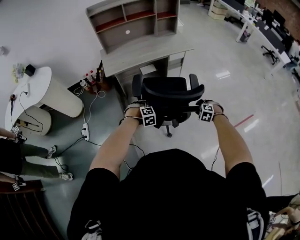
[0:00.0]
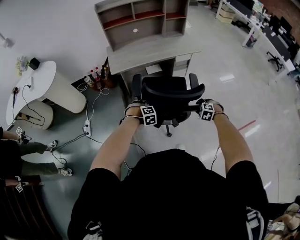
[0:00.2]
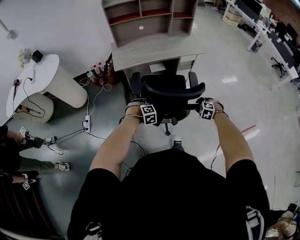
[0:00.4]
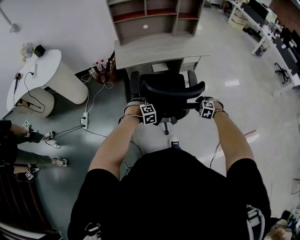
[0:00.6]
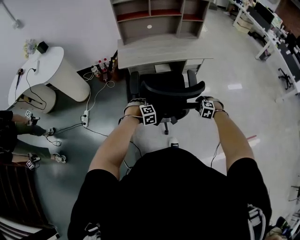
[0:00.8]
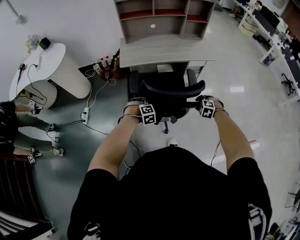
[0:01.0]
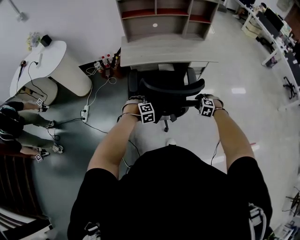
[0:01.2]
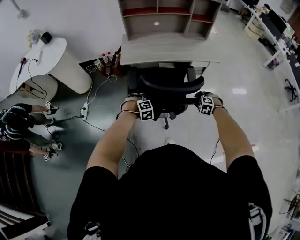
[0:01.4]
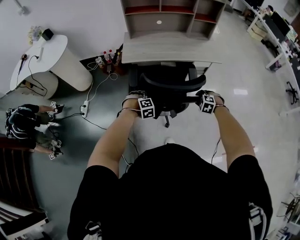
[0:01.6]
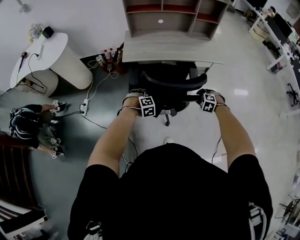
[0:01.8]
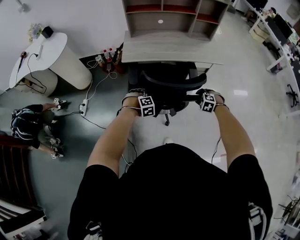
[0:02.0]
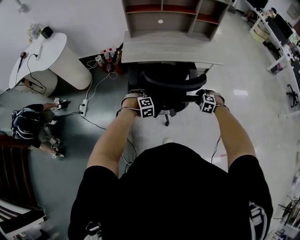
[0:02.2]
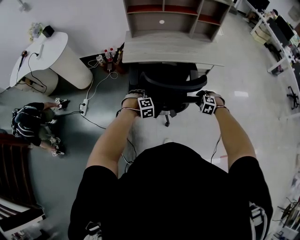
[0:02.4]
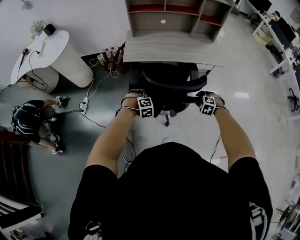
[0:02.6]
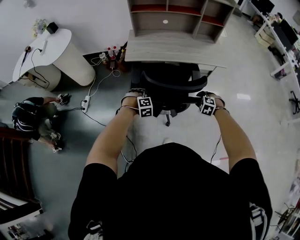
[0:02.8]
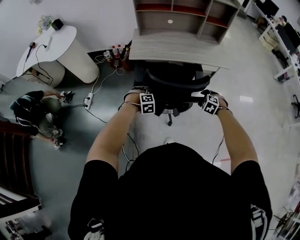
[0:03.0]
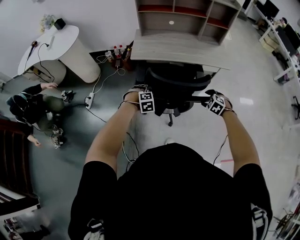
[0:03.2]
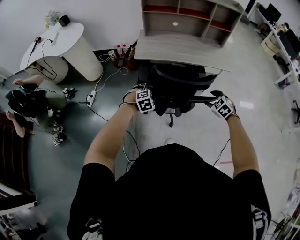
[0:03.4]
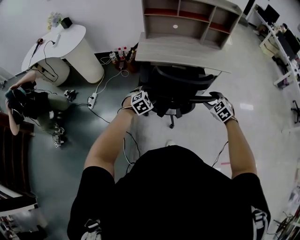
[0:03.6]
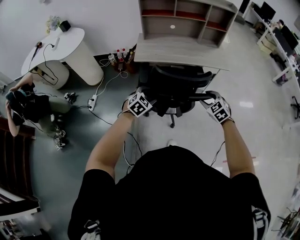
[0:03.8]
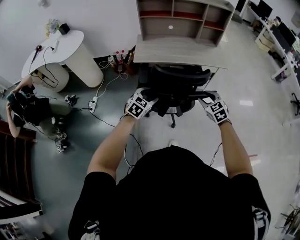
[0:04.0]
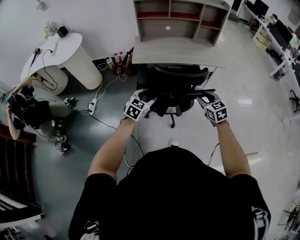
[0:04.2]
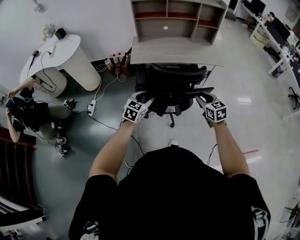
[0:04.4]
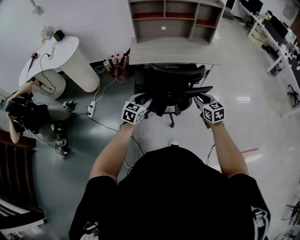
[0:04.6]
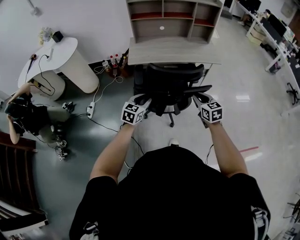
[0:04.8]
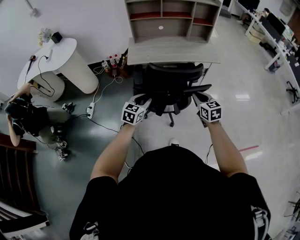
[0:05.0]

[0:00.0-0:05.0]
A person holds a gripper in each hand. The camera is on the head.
0:00.0 to 0:01.6: The right gripper travels forward by some 20 cm, while the left gripper travels forward by approximately 10 cm.
0:01.6 to 0:03.4: The right gripper is displaced upward by about 10 cm, rotates roughly 20 degrees, and opens. Meanwhile the left gripper shifts some 5 cm upward, turns by roughly 20 degrees, and opens up.
0:03.4 to 0:05.0: The right gripper is displaced backward, upward and to the left by approximately 15 cm, rotates roughly 50 degrees, and closes. The left gripper travels upward and backward by approximately 15 cm, angles its fingers upward, by roughly 30 degrees, and closes up.

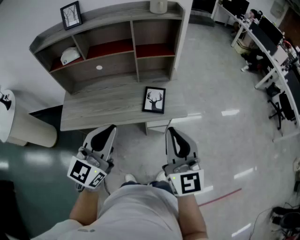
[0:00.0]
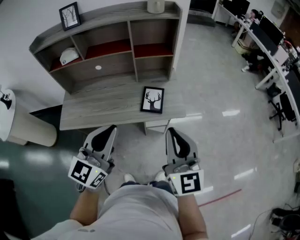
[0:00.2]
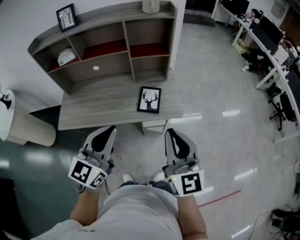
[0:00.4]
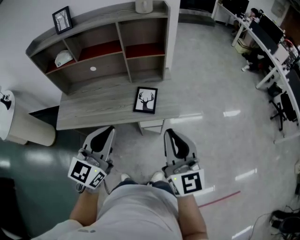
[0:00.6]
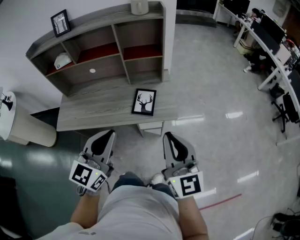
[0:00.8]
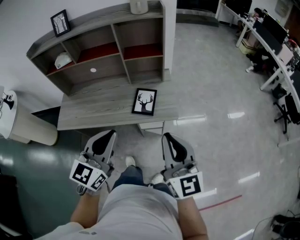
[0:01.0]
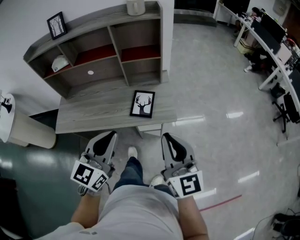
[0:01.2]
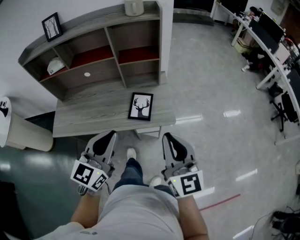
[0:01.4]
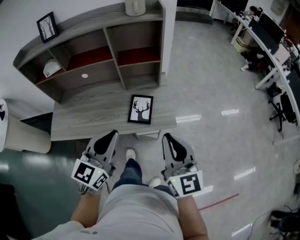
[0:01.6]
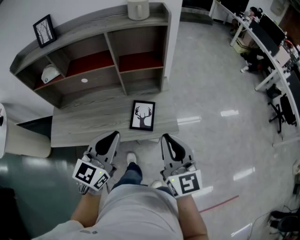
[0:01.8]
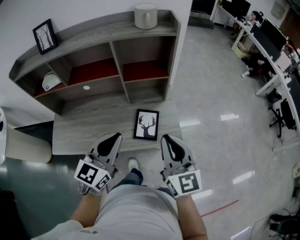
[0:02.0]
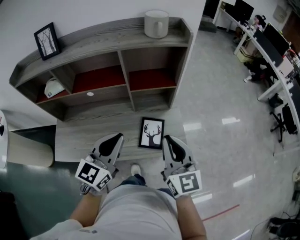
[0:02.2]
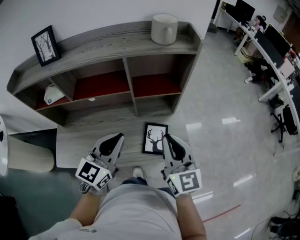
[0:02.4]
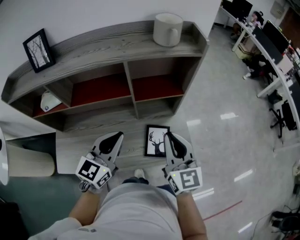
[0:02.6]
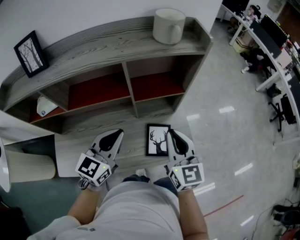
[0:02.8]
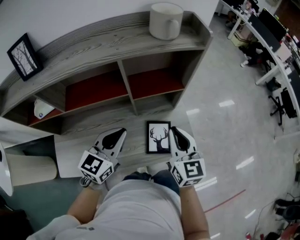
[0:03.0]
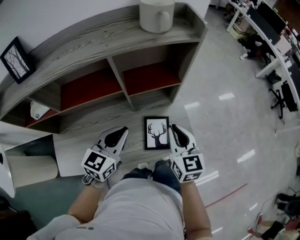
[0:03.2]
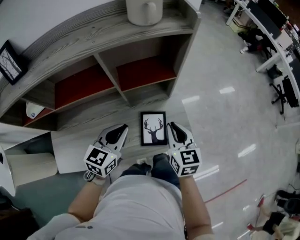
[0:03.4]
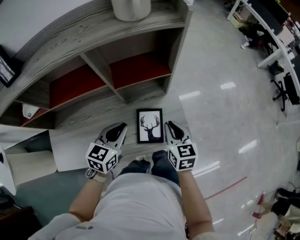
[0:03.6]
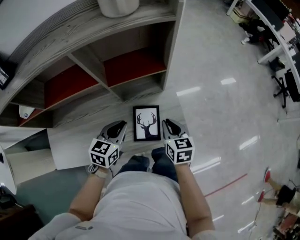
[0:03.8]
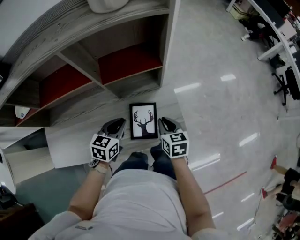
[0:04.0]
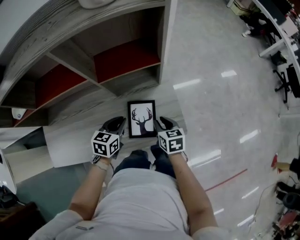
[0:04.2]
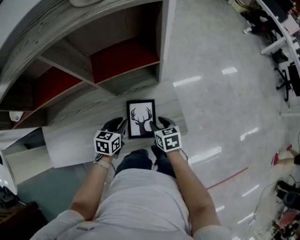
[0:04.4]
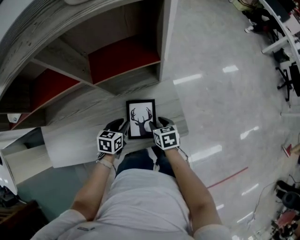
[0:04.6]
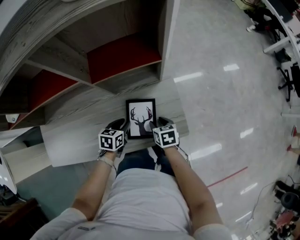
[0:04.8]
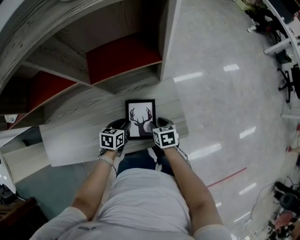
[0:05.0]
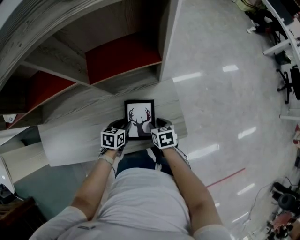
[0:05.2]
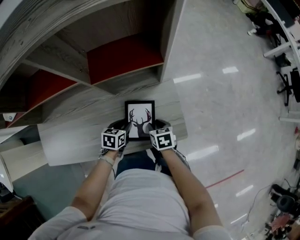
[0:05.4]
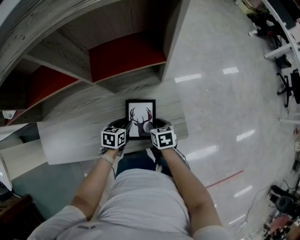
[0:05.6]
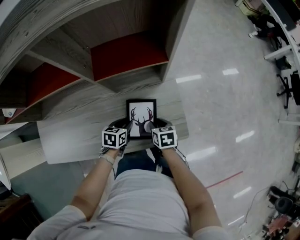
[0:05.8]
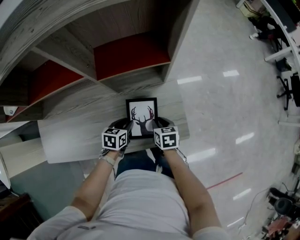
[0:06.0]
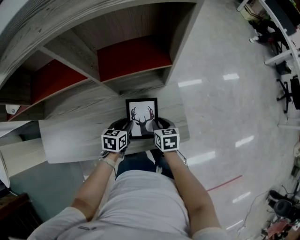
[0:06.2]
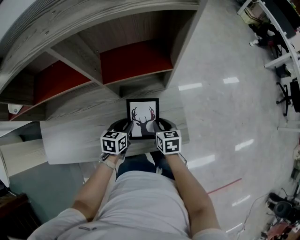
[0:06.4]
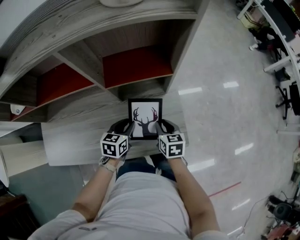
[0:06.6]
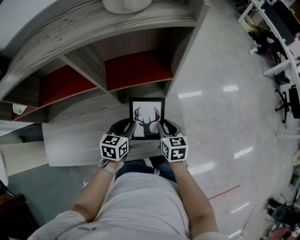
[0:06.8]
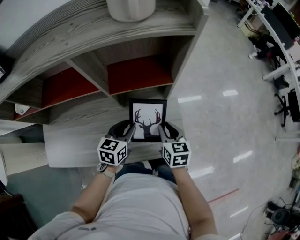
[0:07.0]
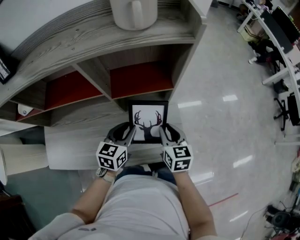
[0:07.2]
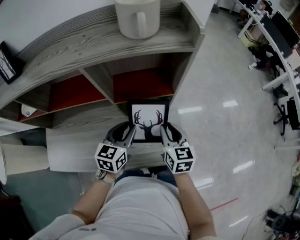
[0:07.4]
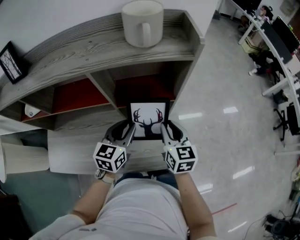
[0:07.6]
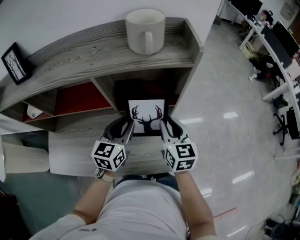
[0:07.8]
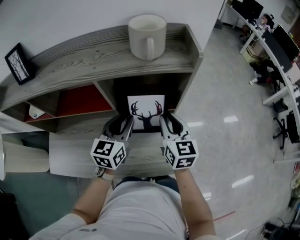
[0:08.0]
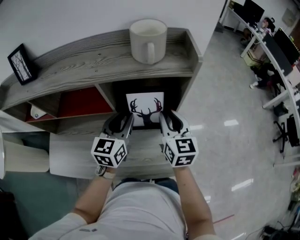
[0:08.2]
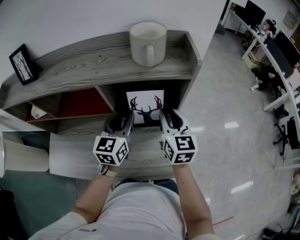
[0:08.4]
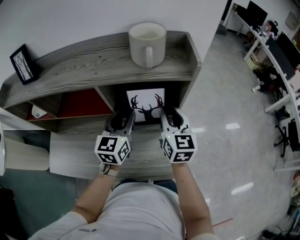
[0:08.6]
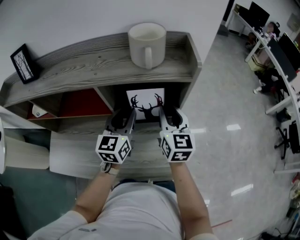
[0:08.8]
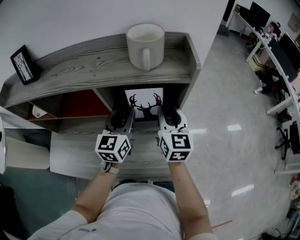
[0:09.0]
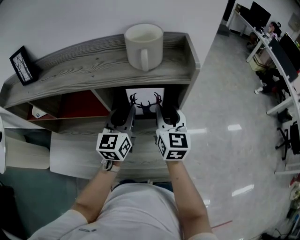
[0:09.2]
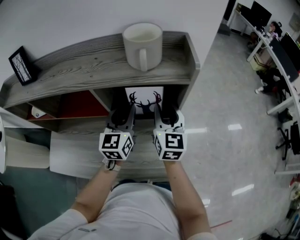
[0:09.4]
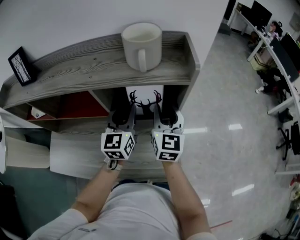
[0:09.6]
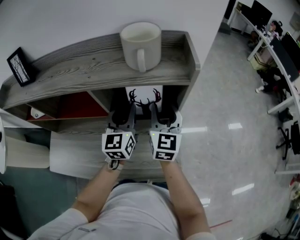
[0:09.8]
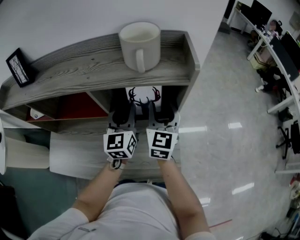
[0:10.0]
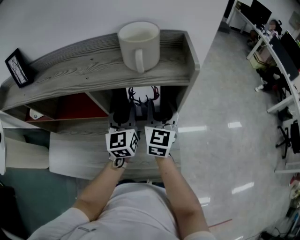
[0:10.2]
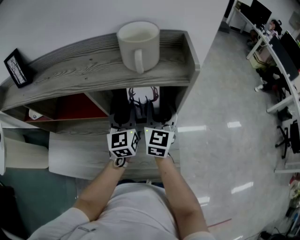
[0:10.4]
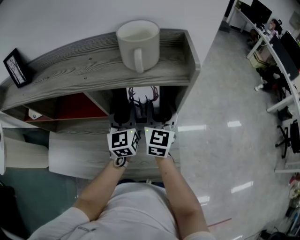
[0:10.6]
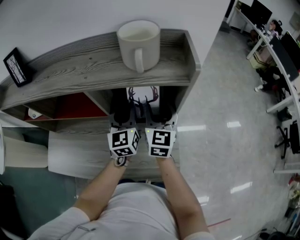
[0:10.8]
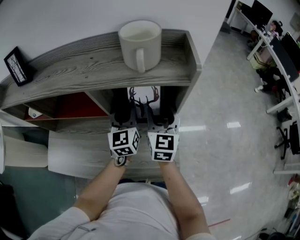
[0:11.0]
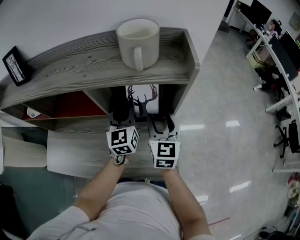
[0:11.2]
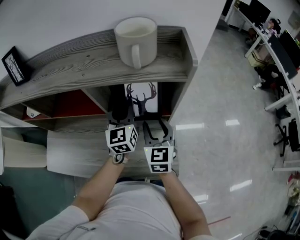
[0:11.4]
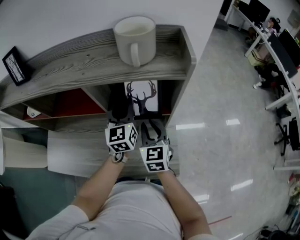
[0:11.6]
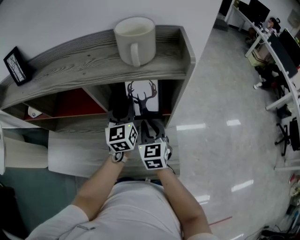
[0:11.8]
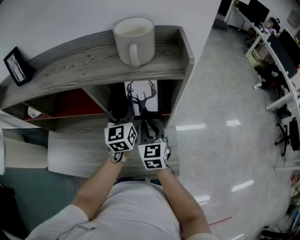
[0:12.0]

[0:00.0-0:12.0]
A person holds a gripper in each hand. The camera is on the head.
0:00.0 to 0:01.6: The right gripper goes about 15 cm forward and to the right. The left gripper travels forward, to the right and downward by some 15 cm.
0:01.6 to 0:03.0: The two grippers go roughly 30 cm forward and to the left.
0:03.0 to 0:04.4: Both grippers move downward, some 30 cm. The right gripper tips its fingers downward by about 30 degrees, and opens up, while the left gripper tilts its fingers some 30 degrees downward.
0:04.4 to 0:06.0: The right gripper shifts about 5 cm downward, while the left gripper heads downward, covering about 10 cm.
0:06.0 to 0:07.6: The two grippers go approximately 30 cm upward. The left gripper swivels some 30 degrees. The right gripper tips its fingers upward by roughly 30 degrees.
0:07.6 to 0:09.0: Both grippers move upward and forward, roughly 15 cm. The left gripper turns by approximately 20 degrees.
0:09.0 to 0:10.4: The right gripper opens.
0:10.4 to 0:12.0: The right gripper is displaced backward and downward by some 10 cm, and closes its fingers.

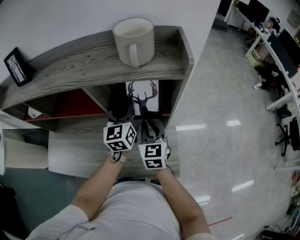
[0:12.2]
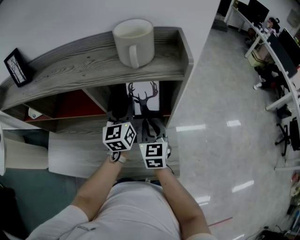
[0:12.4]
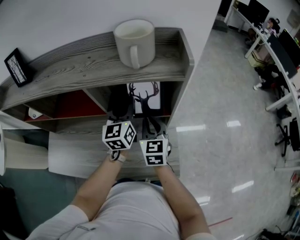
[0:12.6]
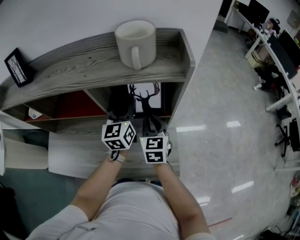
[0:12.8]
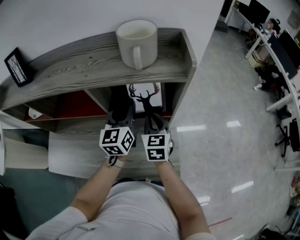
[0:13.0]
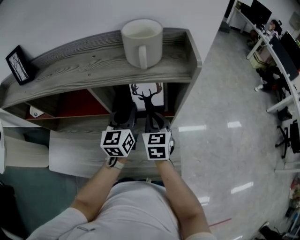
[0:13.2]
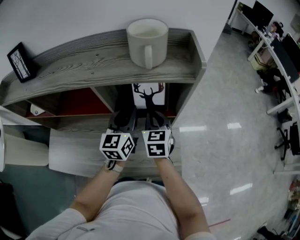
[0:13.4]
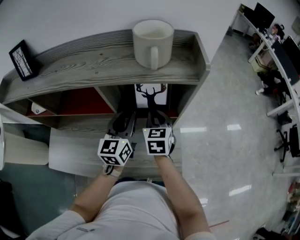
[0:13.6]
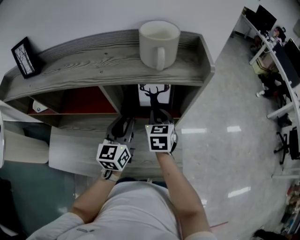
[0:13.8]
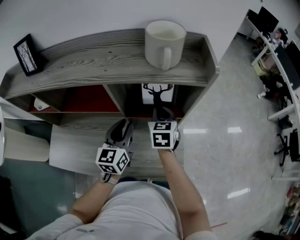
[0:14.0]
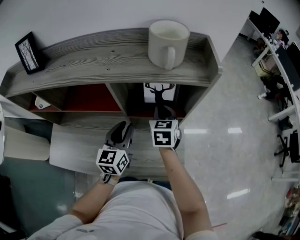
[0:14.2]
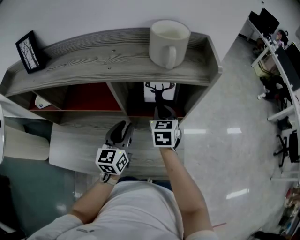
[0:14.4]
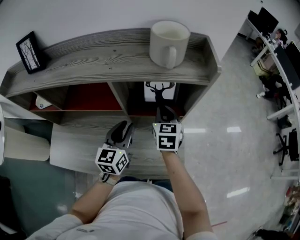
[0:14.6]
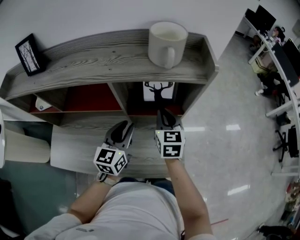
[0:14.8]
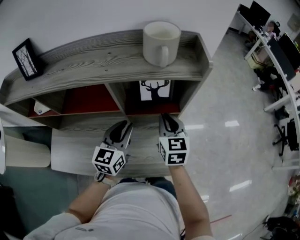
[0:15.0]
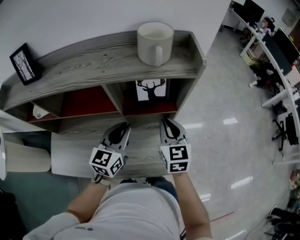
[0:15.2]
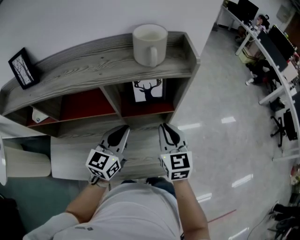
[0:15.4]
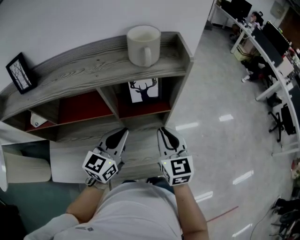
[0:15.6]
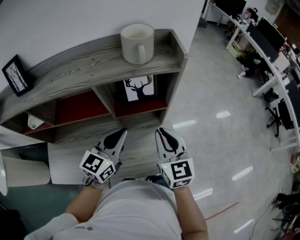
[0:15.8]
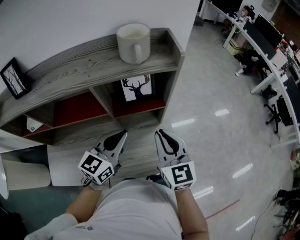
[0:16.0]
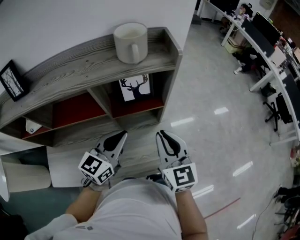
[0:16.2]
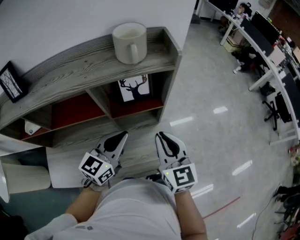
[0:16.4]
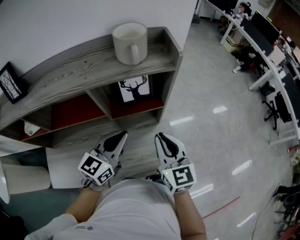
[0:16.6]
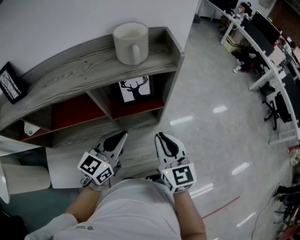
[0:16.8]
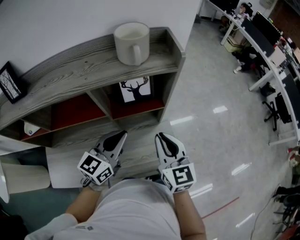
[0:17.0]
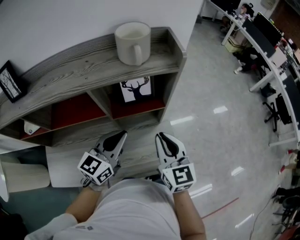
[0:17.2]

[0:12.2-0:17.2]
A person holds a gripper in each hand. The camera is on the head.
0:12.2 to 0:13.8: The right gripper moves forward, approximately 5 cm; the left gripper moves backward, about 5 cm.
0:13.8 to 0:15.6: The right gripper heads backward and upward, covering about 15 cm, while the left gripper moves backward and upward, roughly 10 cm, turns by roughly 30 degrees, and closes its fingers.
0:15.6 to 0:17.2: The grippers make only small movements.

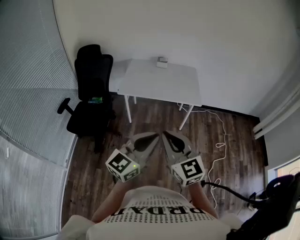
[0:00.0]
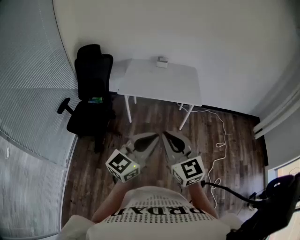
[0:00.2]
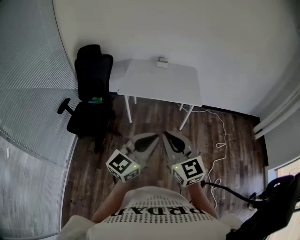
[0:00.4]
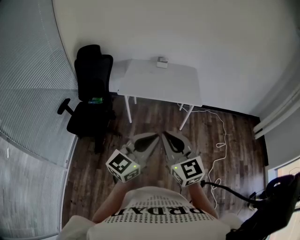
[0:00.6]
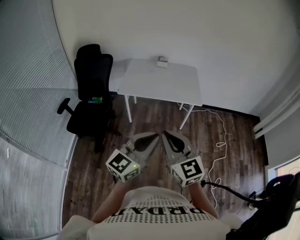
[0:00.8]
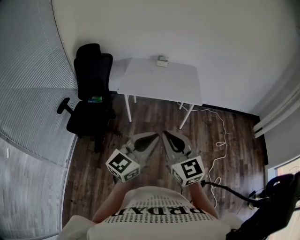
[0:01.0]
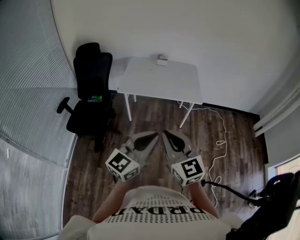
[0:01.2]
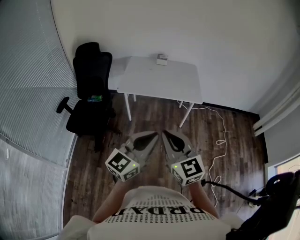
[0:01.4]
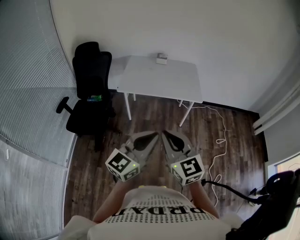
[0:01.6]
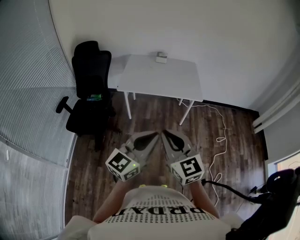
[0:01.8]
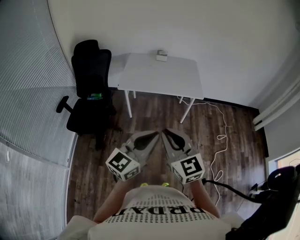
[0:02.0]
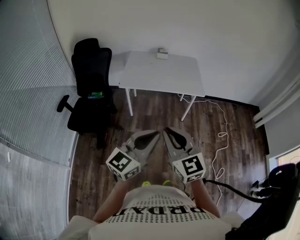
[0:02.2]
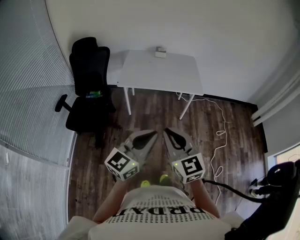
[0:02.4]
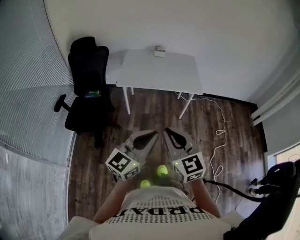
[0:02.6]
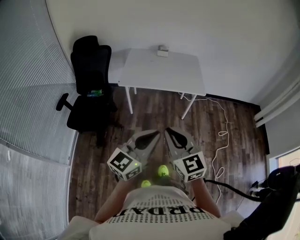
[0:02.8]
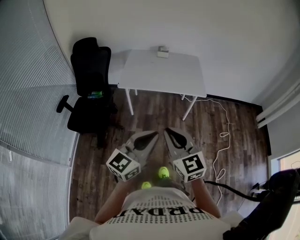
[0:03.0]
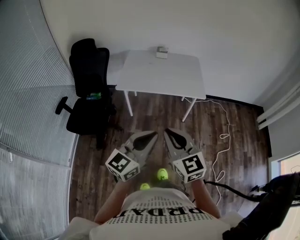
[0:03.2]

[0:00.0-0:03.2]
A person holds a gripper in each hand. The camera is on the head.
0:00.0 to 0:01.6: The grippers move only a little.
0:01.6 to 0:03.2: Both grippers travel together forward, approximately 5 cm.
